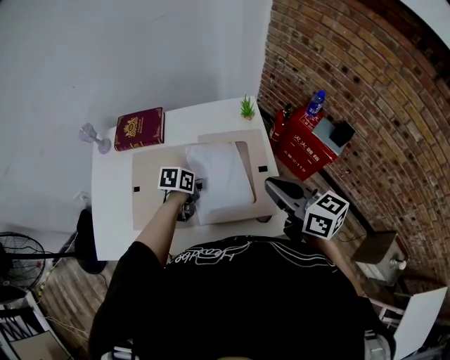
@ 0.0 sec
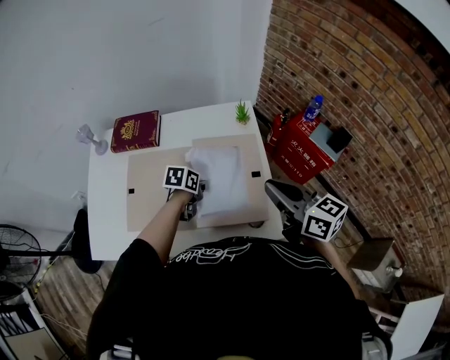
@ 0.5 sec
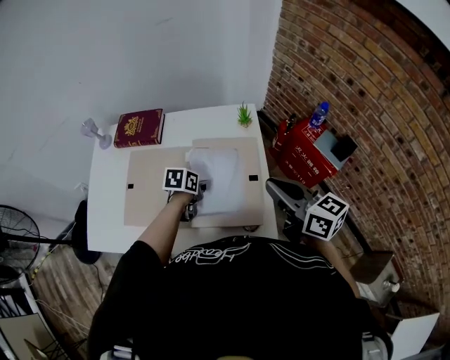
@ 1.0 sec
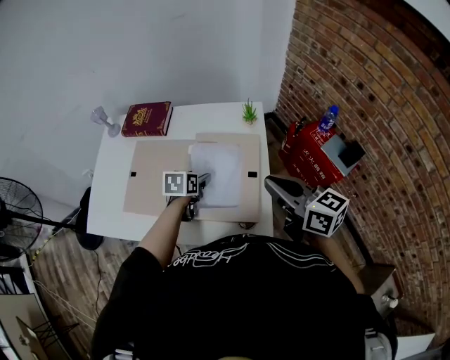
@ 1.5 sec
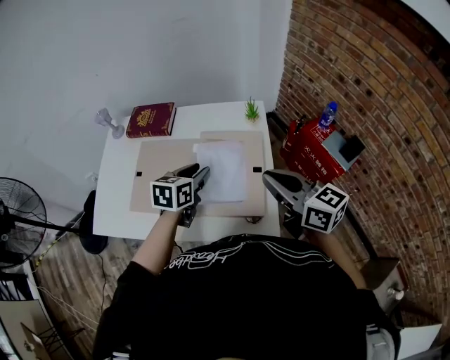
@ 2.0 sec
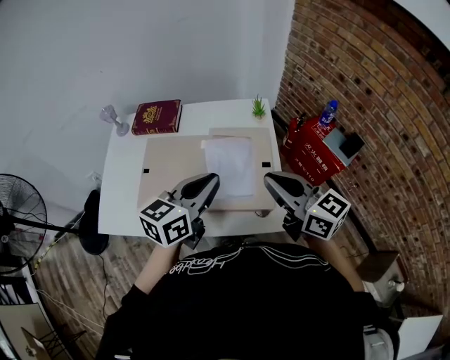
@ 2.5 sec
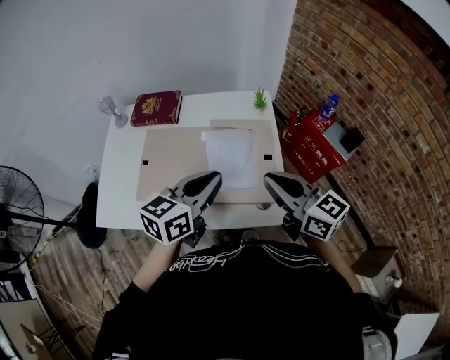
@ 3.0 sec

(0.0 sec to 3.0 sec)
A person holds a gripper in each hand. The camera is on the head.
0.0 sec - 1.5 sec: The left gripper swivels some 20 degrees, and opens its fingers, while the right gripper goes about 5 cm to the right.
1.5 sec - 3.0 sec: The left gripper goes some 25 cm upward and backward, points its fingers about 30 degrees further upward, and closes, while the right gripper heads to the left, covering approximately 10 cm.

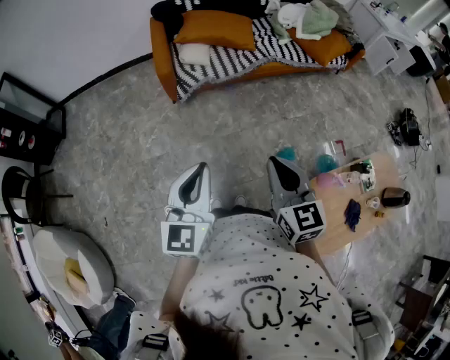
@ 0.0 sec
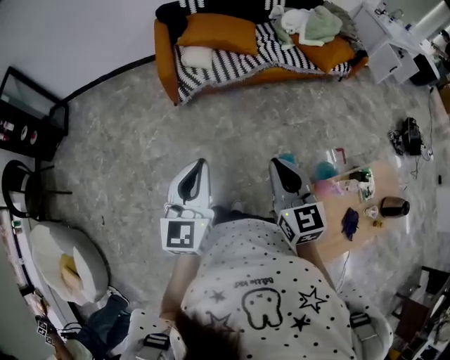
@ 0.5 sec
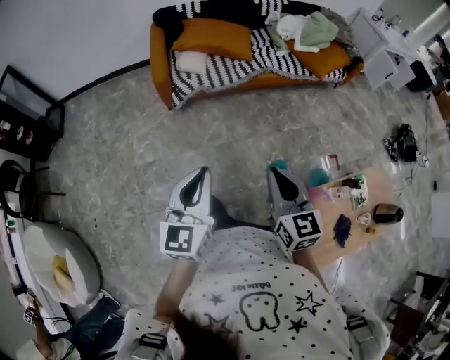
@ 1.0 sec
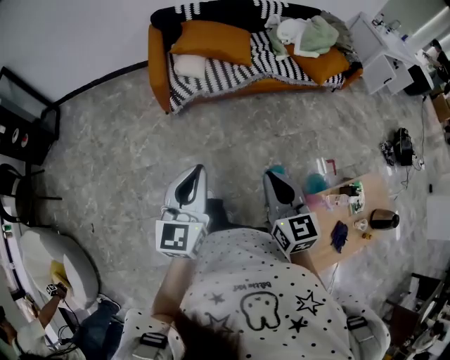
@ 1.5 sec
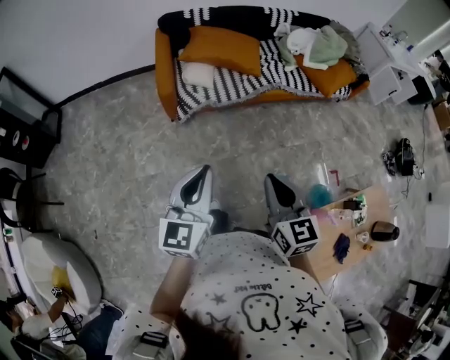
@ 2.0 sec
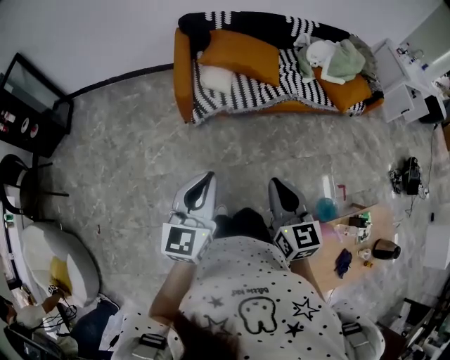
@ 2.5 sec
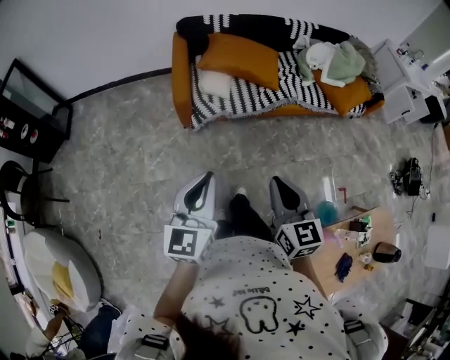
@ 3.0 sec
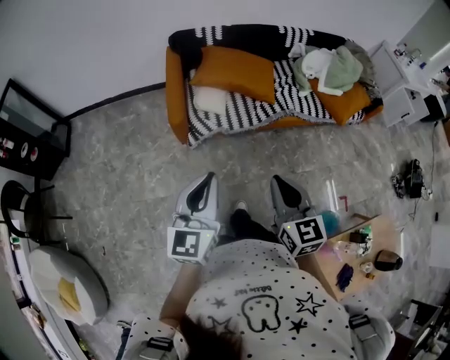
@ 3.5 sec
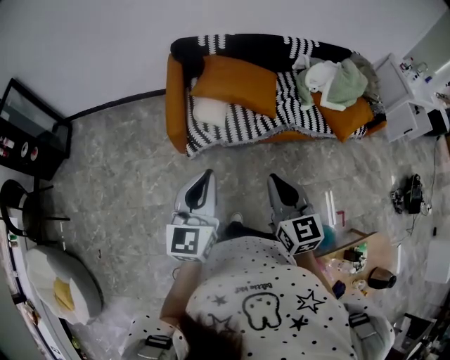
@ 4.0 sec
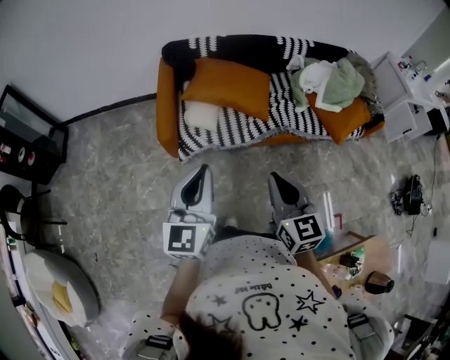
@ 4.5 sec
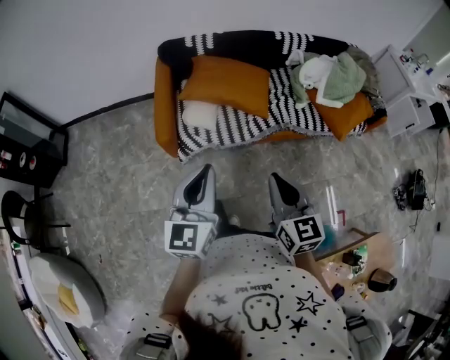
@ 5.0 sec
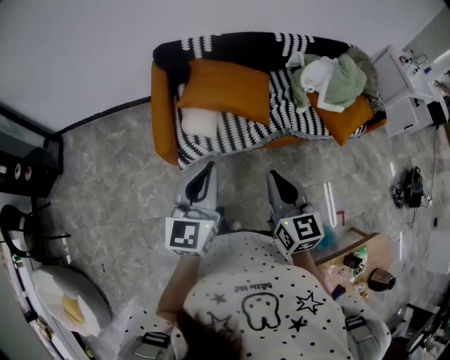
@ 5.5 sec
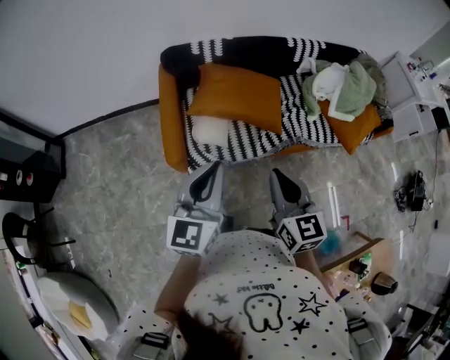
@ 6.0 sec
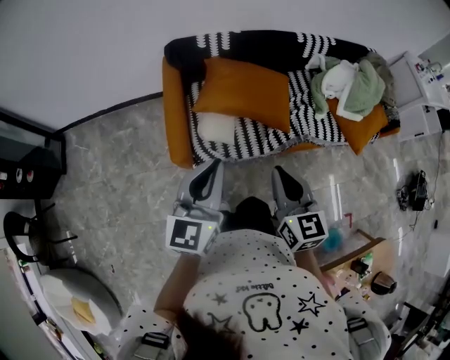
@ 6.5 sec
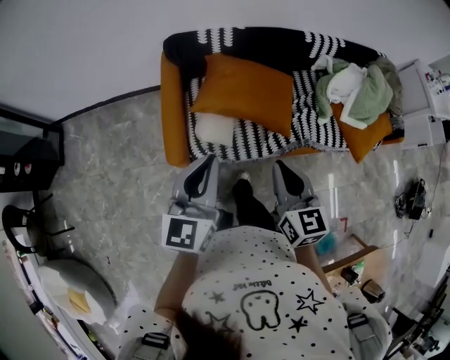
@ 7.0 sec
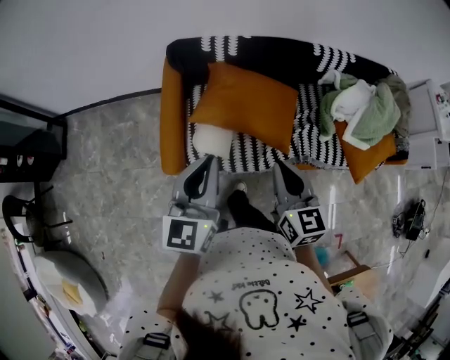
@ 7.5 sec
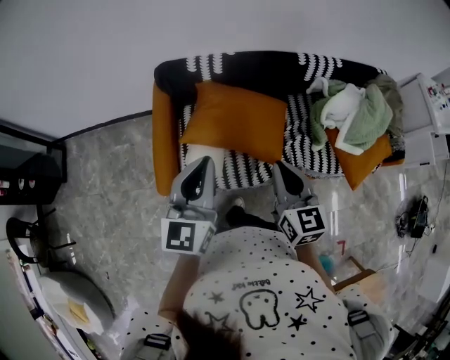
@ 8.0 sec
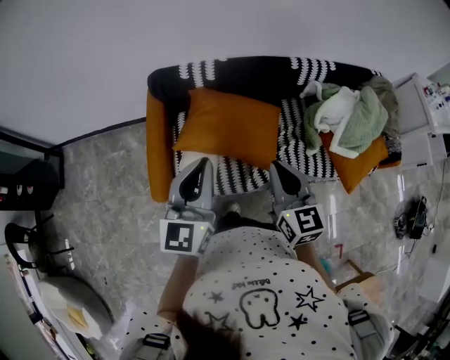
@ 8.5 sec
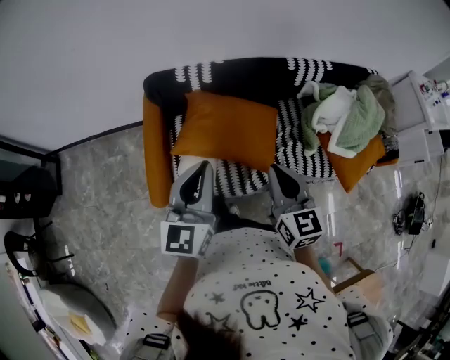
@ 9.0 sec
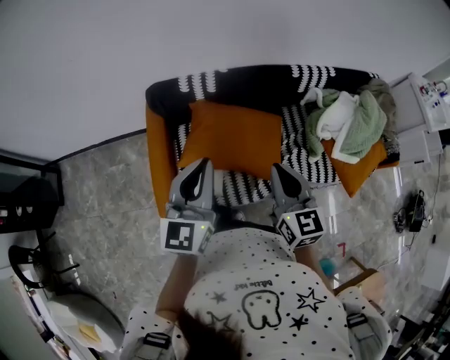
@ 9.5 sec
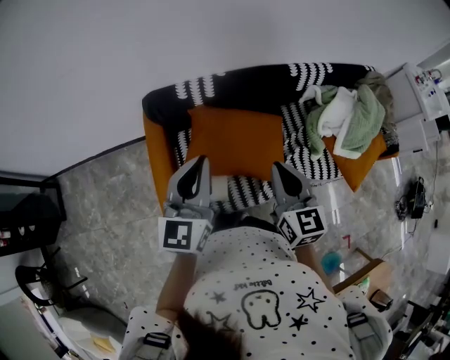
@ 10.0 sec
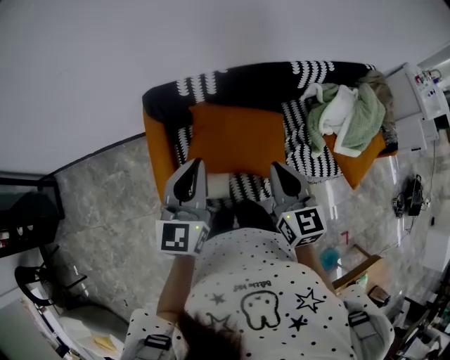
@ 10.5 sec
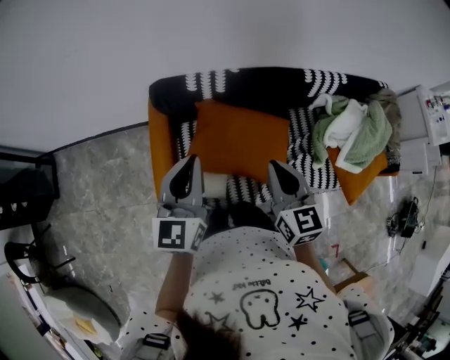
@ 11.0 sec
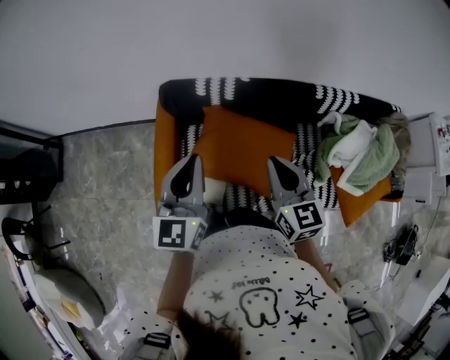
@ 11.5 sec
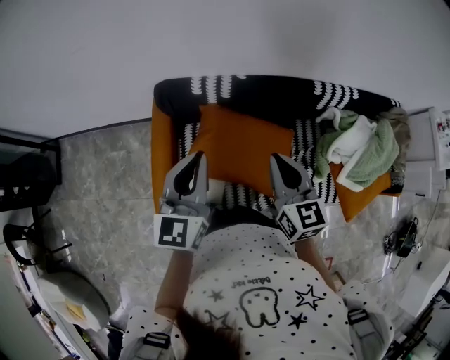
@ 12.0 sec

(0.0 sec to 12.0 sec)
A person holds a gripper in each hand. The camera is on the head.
0.0 sec - 2.0 sec: The two grippers go some 10 cm forward.
2.0 sec - 4.0 sec: The two grippers go some 20 cm forward.
4.0 sec - 6.0 sec: Both grippers travel together forward, roughly 20 cm.
6.0 sec - 8.0 sec: The two grippers go approximately 20 cm forward.
8.0 sec - 10.0 sec: The grippers both shift forward by some 10 cm.
10.0 sec - 12.0 sec: The right gripper is displaced forward by about 10 cm. The left gripper moves forward, about 5 cm.

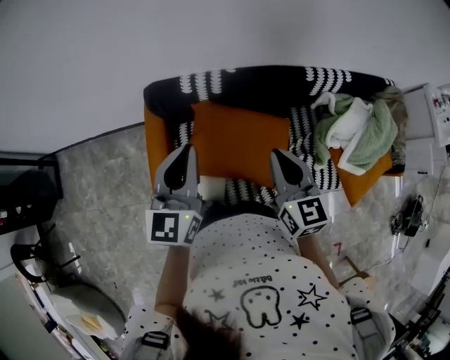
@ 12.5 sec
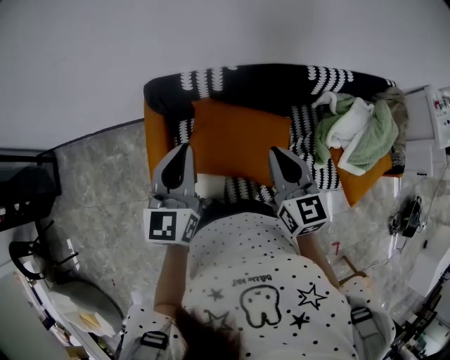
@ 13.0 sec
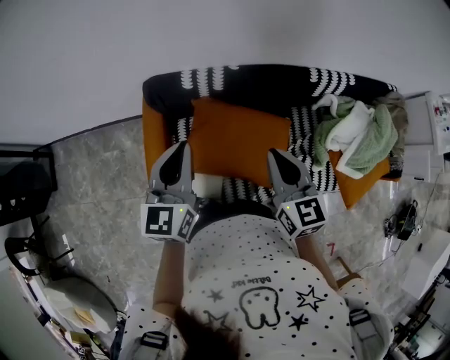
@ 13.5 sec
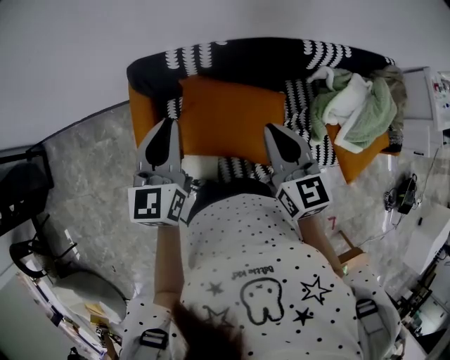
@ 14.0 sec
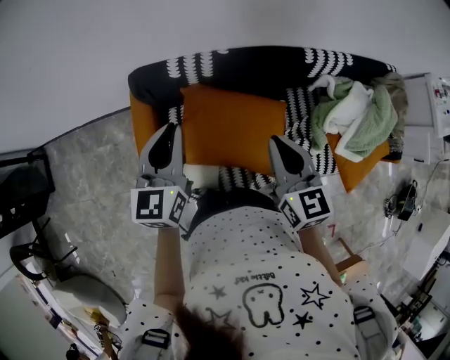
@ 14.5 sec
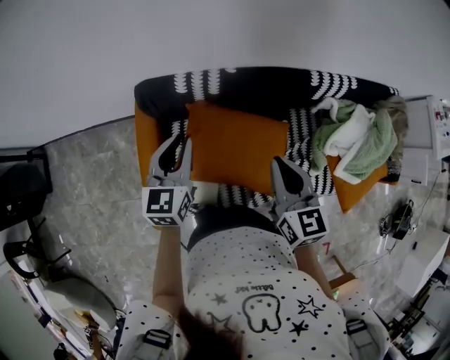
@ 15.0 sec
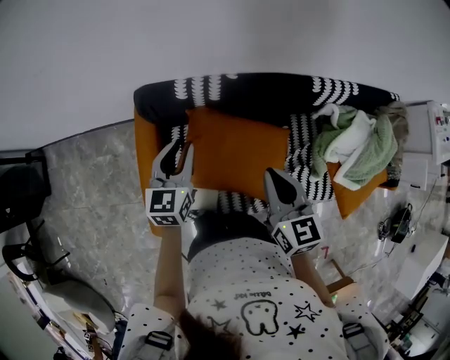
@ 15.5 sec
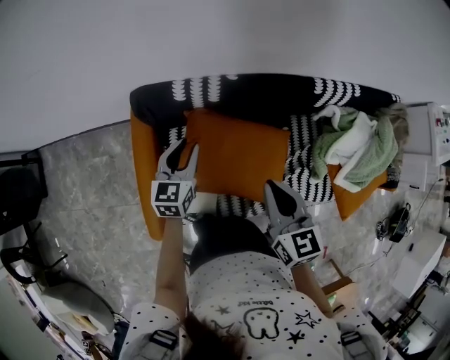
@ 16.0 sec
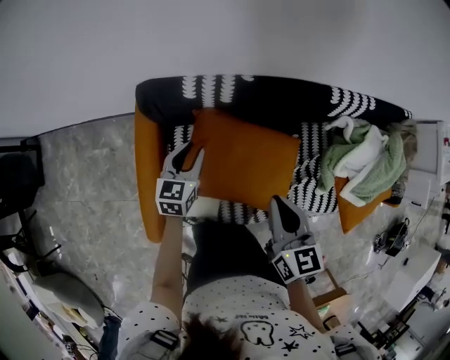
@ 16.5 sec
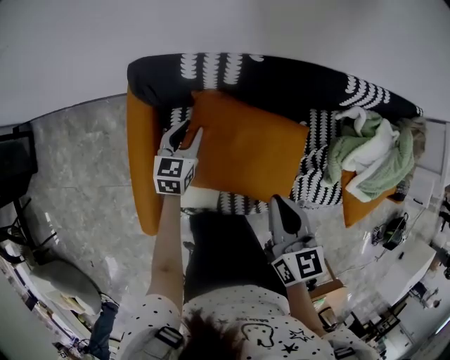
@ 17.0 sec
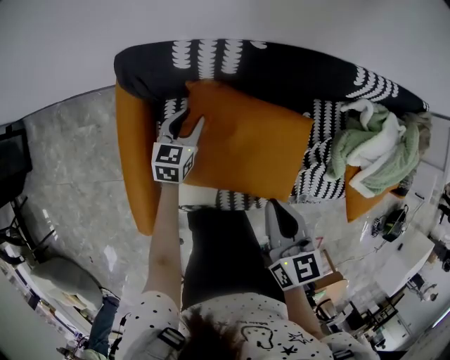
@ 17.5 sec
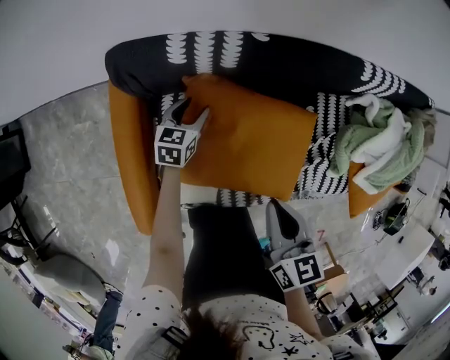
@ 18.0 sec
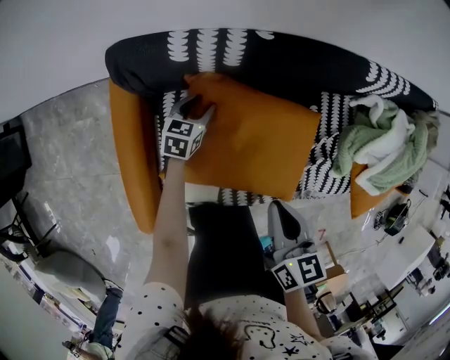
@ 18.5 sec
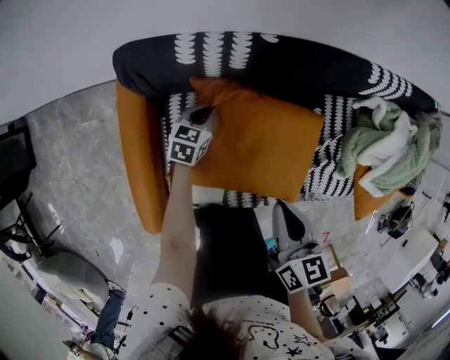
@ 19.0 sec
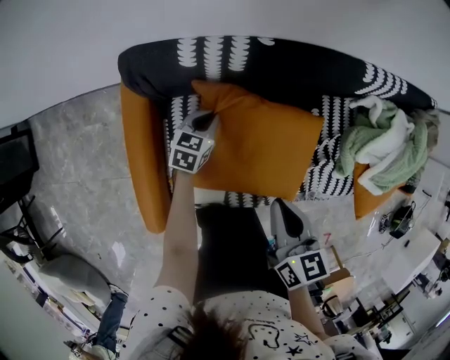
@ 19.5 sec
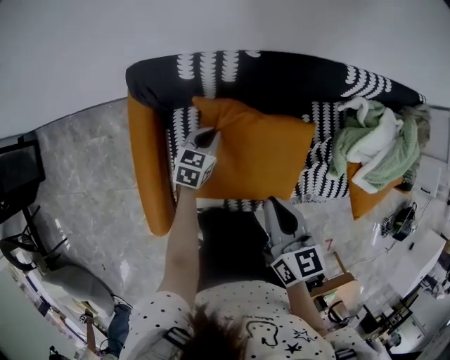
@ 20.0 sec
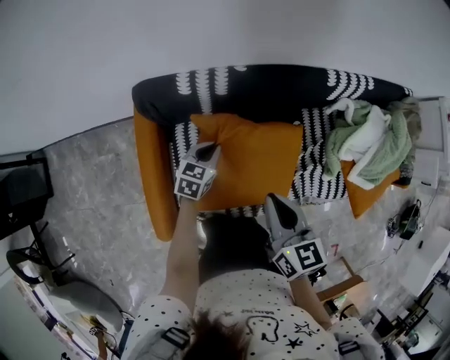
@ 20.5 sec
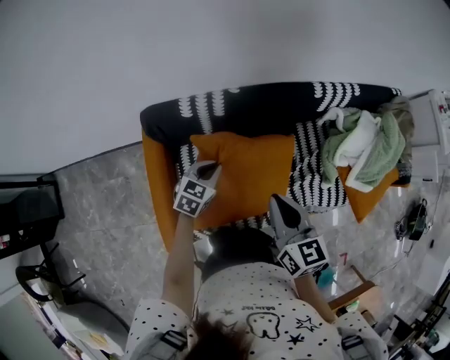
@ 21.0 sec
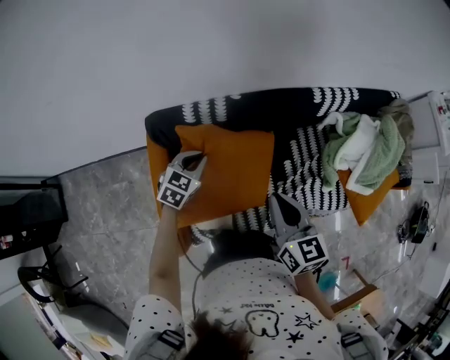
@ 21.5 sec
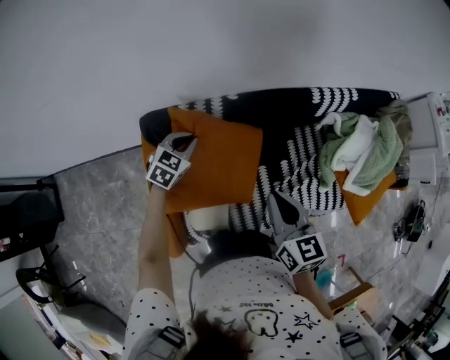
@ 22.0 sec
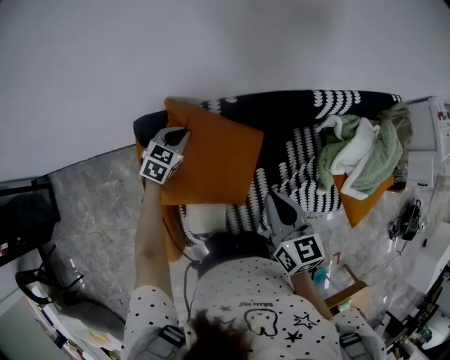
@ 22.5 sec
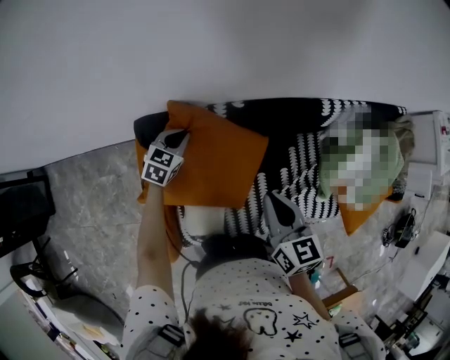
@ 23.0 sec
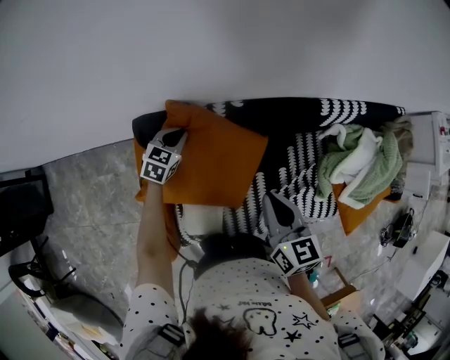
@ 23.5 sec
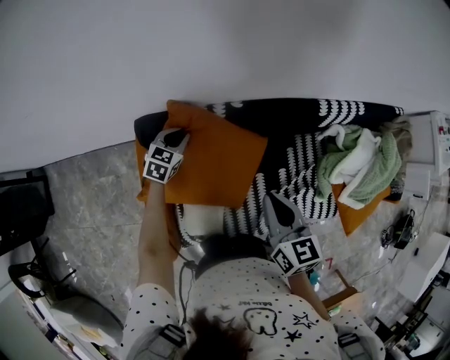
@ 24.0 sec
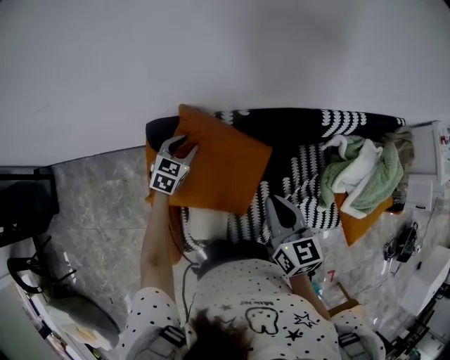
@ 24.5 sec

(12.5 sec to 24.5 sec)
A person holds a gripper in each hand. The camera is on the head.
12.5 sec - 14.5 sec: The left gripper is displaced downward and forward by roughly 10 cm.
14.5 sec - 16.5 sec: The right gripper moves downward, about 10 cm, while the left gripper is displaced downward by about 25 cm, and opens its fingers.
16.5 sec - 18.5 sec: The right gripper travels downward by some 10 cm. The left gripper goes approximately 20 cm downward.
18.5 sec - 20.5 sec: The left gripper heads upward and backward, covering roughly 15 cm, and closes up, while the right gripper goes roughly 10 cm upward.
20.5 sec - 22.5 sec: The right gripper goes approximately 5 cm forward. Meanwhile the left gripper moves forward, to the left and upward, about 15 cm.
22.5 sec - 24.5 sec: The left gripper opens.
